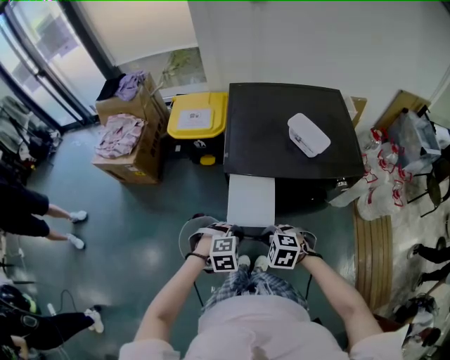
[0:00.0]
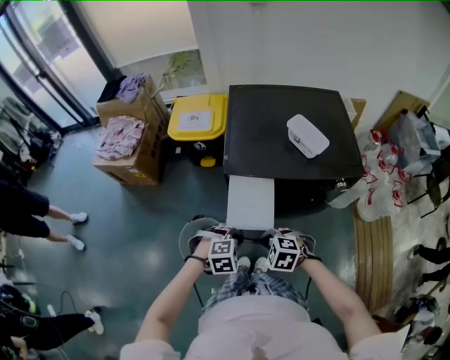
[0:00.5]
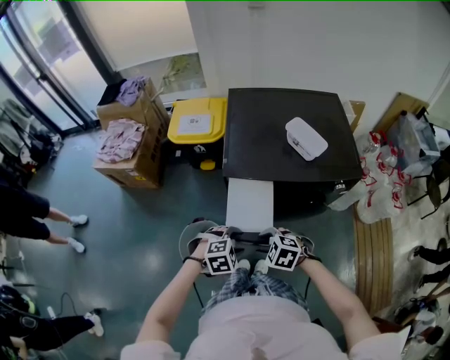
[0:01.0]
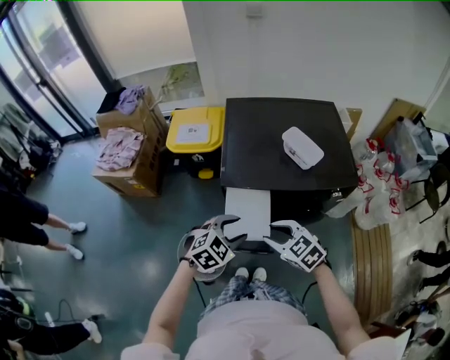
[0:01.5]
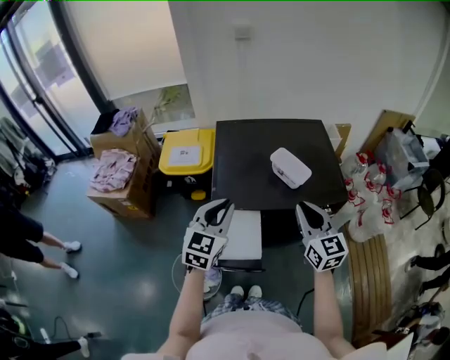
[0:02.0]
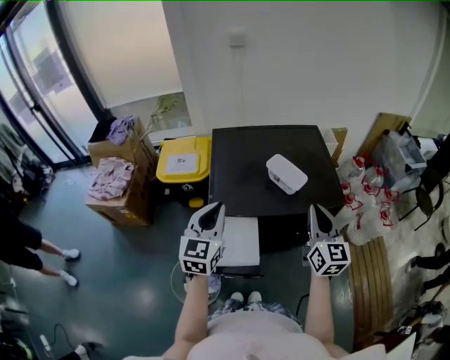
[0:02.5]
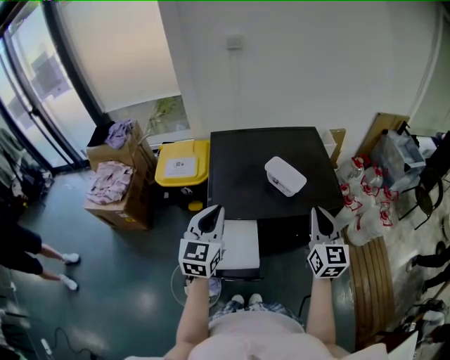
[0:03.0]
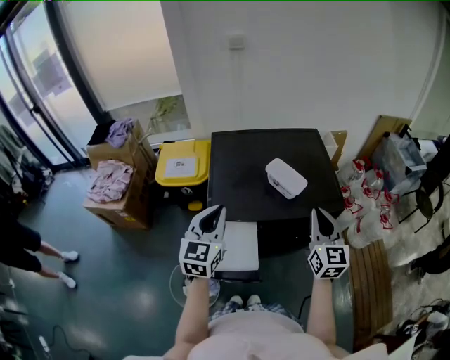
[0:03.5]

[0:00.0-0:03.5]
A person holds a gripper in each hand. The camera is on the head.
0:00.0 to 0:02.0: Both grippers move upward, about 25 cm. The left gripper points its fingers about 50 degrees further upward, and opens and closes again; the right gripper tips its fingers upward by approximately 60 degrees, and opens and closes again.
0:02.0 to 0:03.5: The right gripper goes roughly 5 cm to the right.

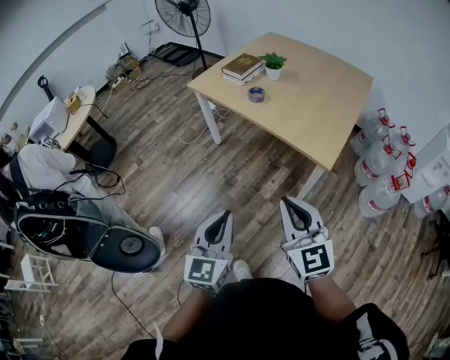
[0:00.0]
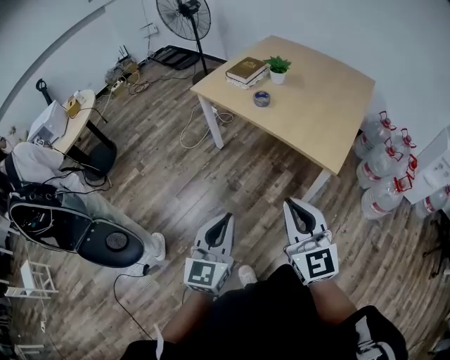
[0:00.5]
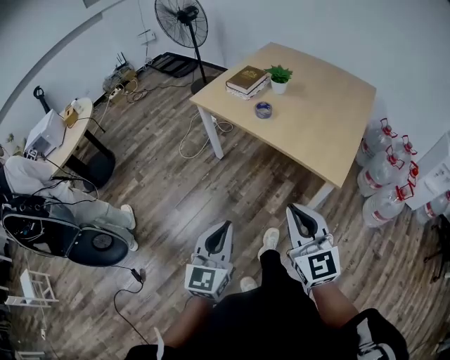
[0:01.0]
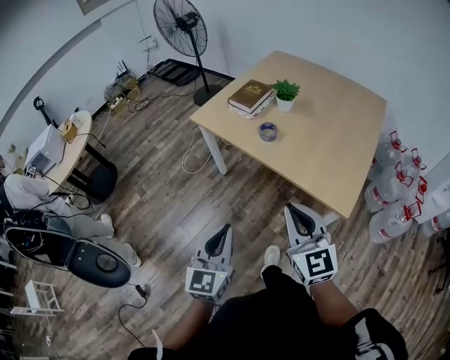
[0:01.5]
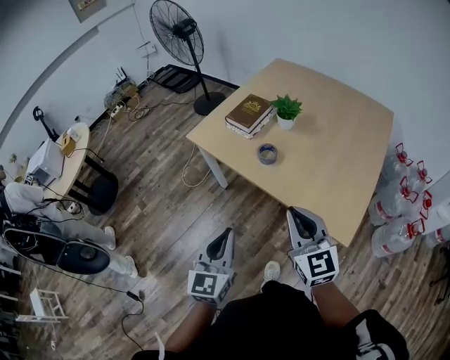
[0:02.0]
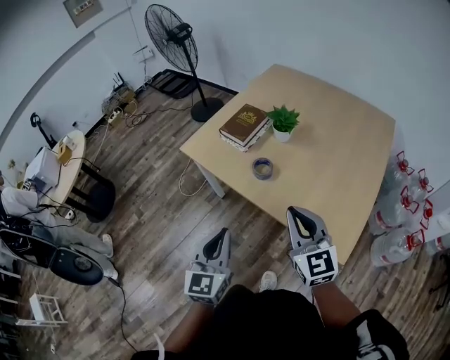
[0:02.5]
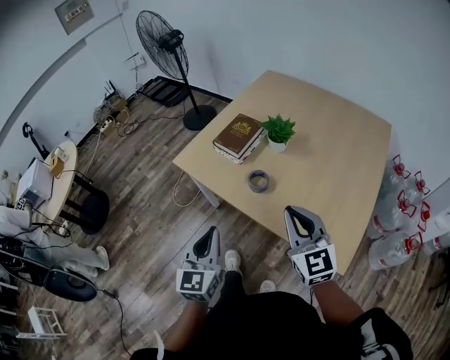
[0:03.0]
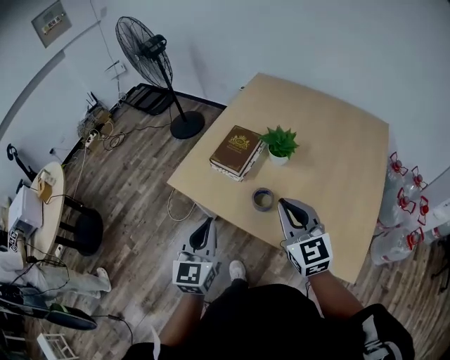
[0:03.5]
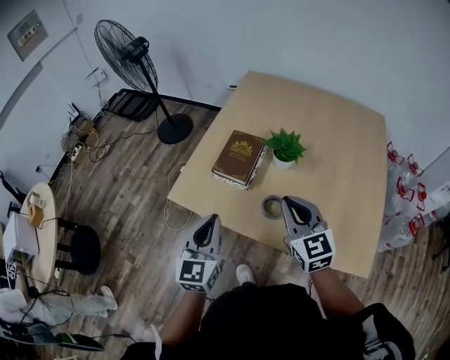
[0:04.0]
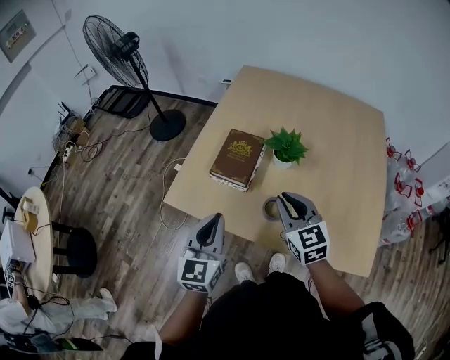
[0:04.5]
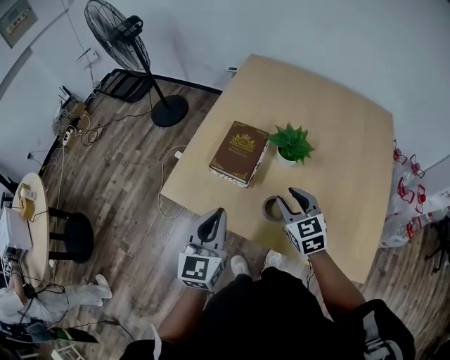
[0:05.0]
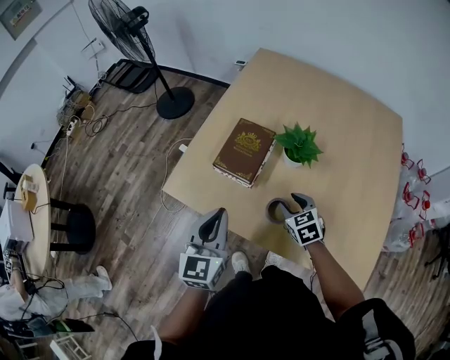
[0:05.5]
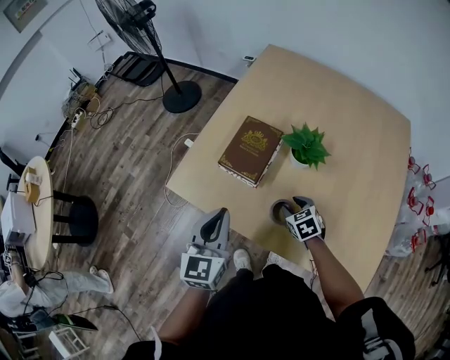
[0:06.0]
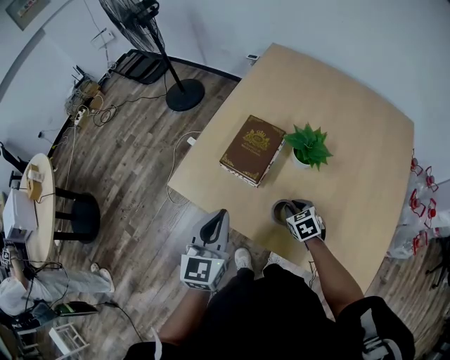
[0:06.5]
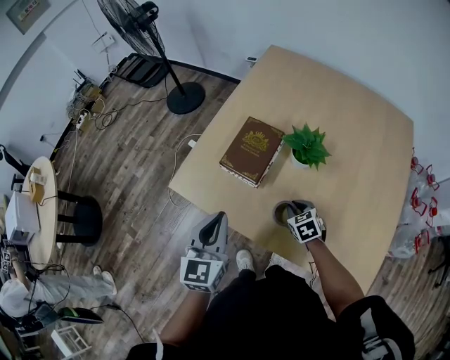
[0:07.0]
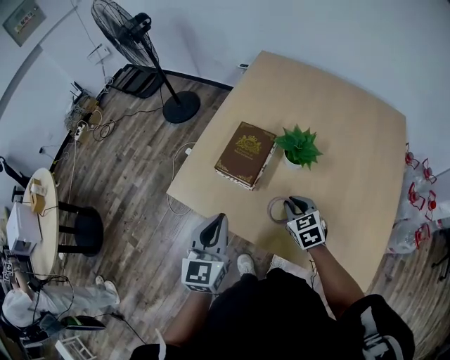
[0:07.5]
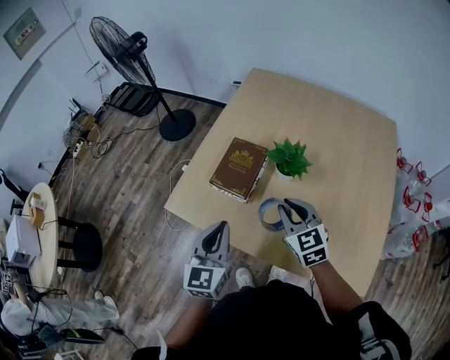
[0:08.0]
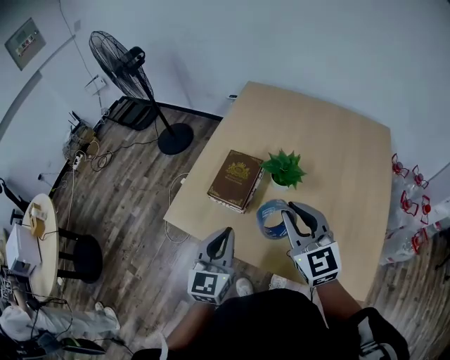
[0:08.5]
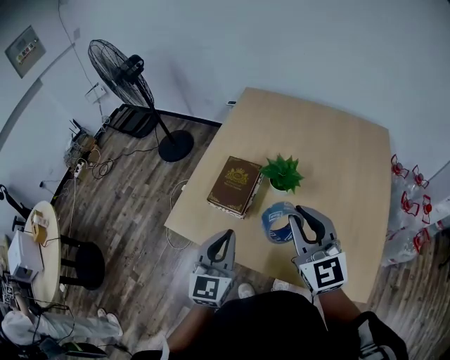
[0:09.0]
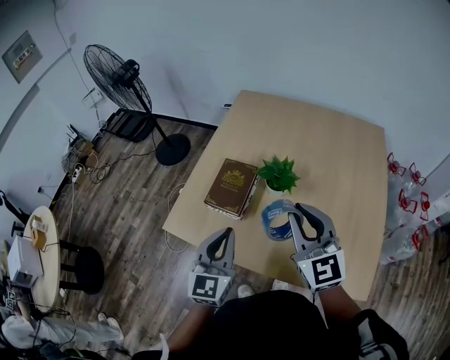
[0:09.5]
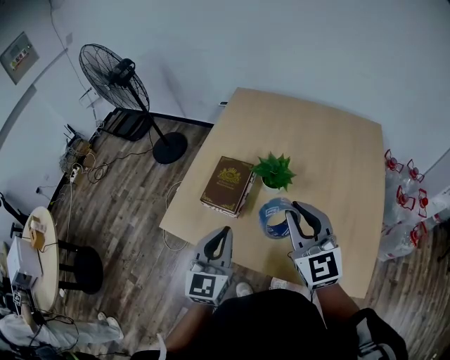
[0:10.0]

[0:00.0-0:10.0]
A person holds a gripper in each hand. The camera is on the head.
0:00.0 to 0:02.0: Both grippers travel together forward, some 30 cm.
0:02.0 to 0:04.0: The two grippers go about 35 cm forward.
0:04.0 to 0:06.0: The left gripper shifts about 5 cm forward, while the right gripper heads downward, covering some 30 cm, points its fingers about 40 degrees further downward, and opens its fingers.
0:06.0 to 0:08.0: The right gripper is displaced upward by roughly 20 cm, turns by some 30 degrees, and closes.
0:08.0 to 0:10.0: The left gripper changes place by roughly 5 cm. Meanwhile the right gripper goes approximately 15 cm upward, and changes its angle by roughly 20 degrees.

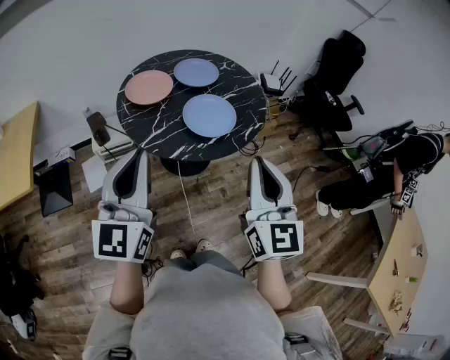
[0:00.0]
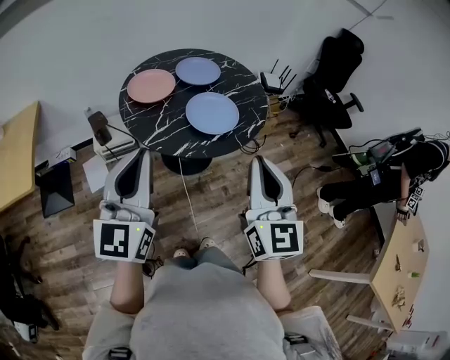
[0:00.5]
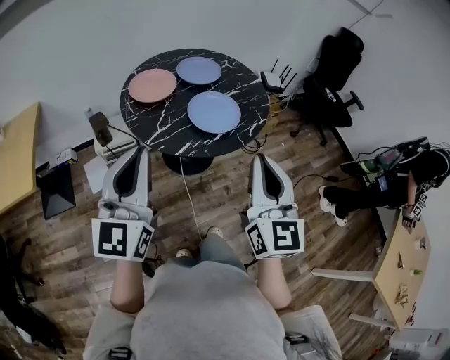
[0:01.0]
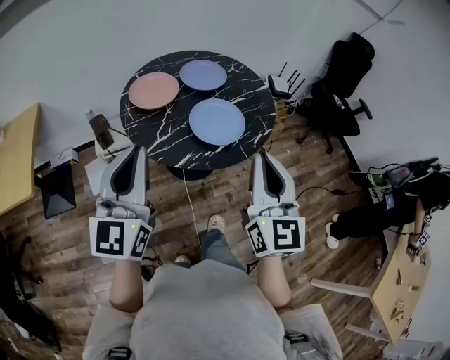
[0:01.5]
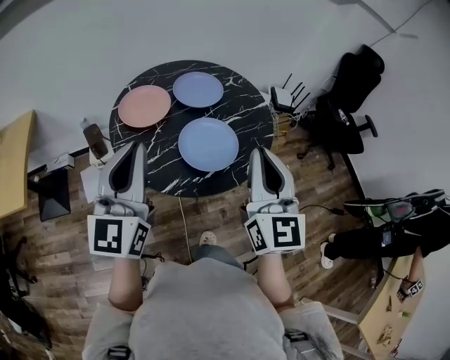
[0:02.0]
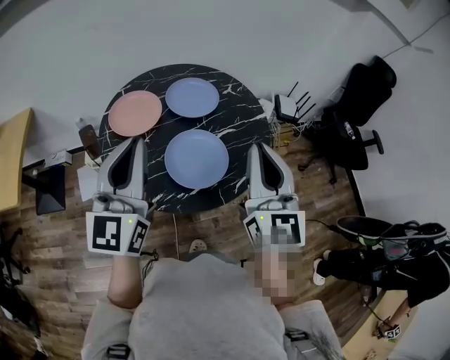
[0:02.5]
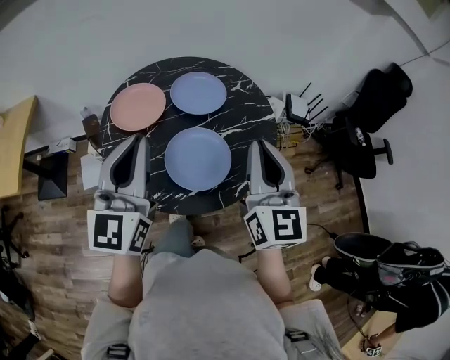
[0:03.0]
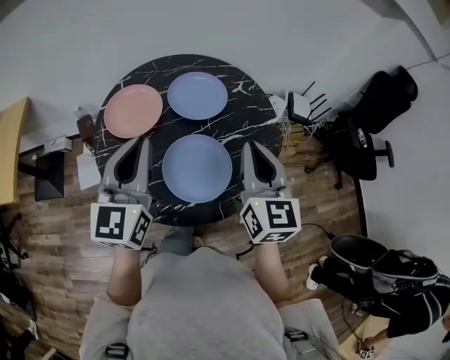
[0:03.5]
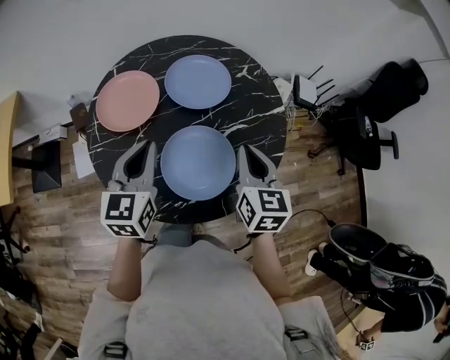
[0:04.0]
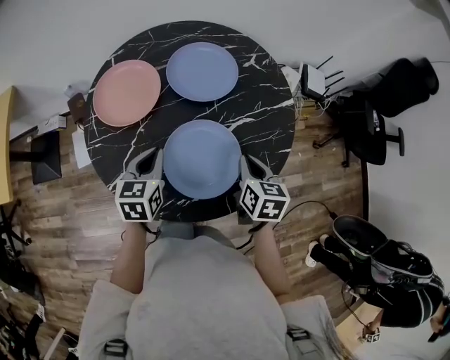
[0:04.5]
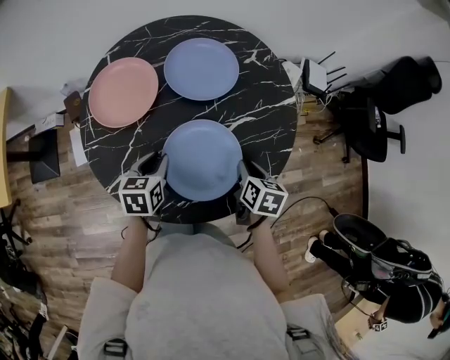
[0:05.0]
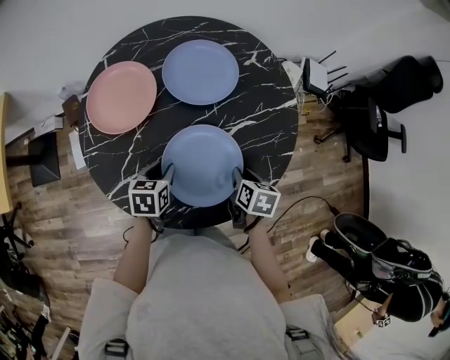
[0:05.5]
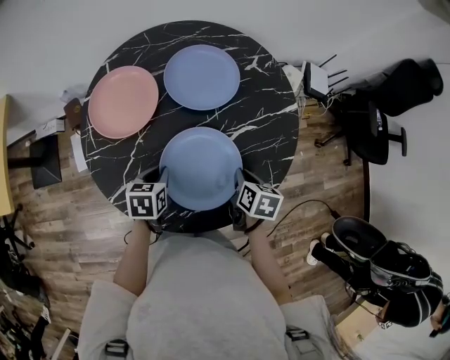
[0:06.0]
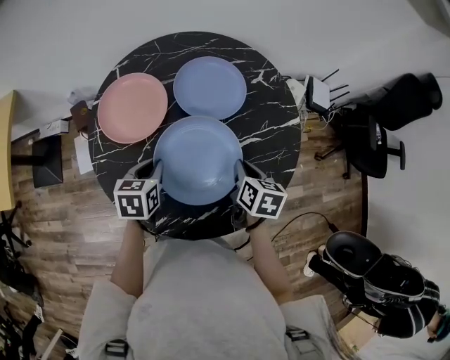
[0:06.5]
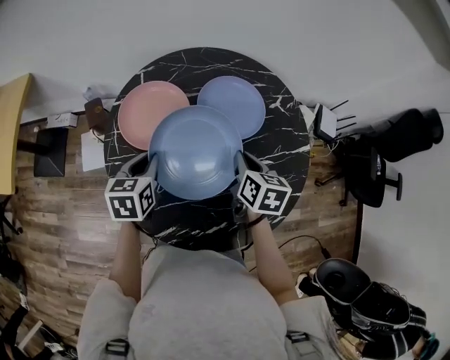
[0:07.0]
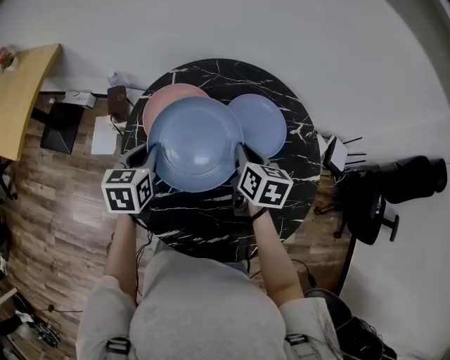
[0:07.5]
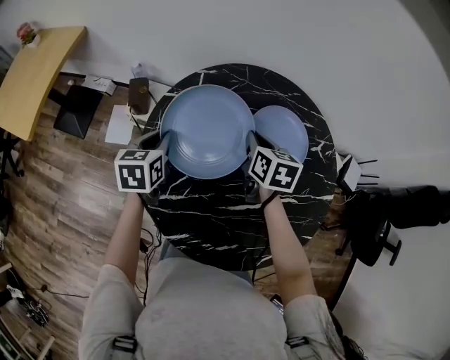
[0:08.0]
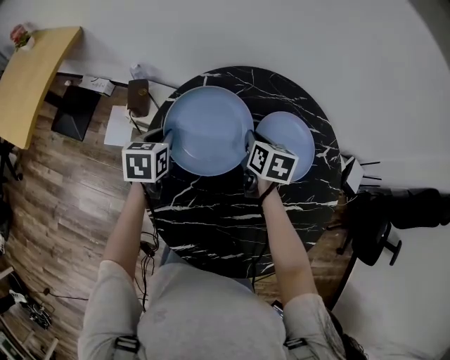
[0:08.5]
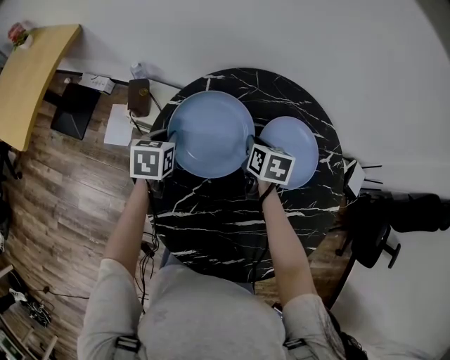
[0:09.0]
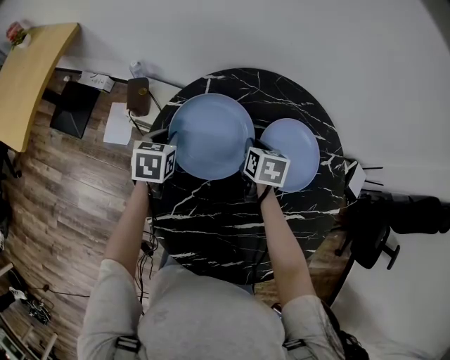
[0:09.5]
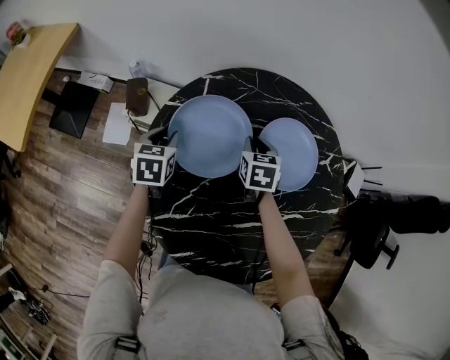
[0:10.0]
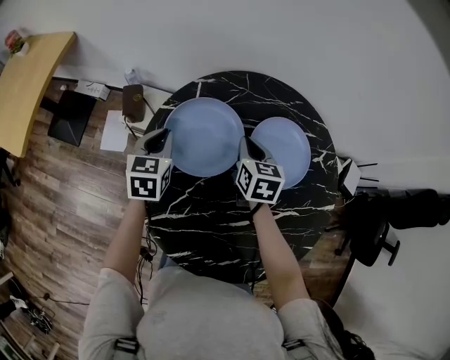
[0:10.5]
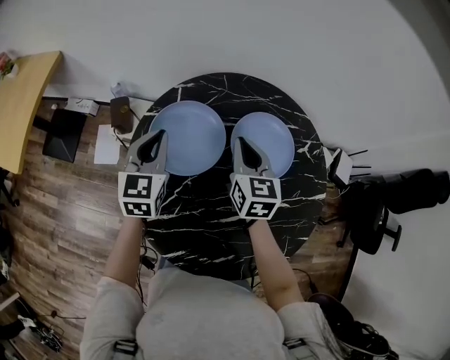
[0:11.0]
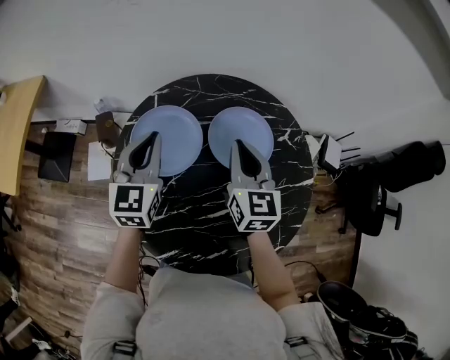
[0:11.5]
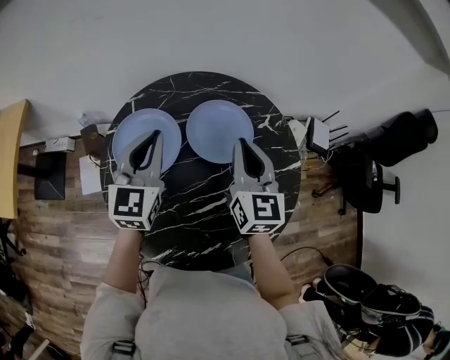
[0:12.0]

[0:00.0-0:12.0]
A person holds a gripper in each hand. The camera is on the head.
0:00.0 to 0:02.0: Both grippers move forward, some 15 cm.
0:02.0 to 0:04.0: The two grippers go roughly 30 cm forward and downward. The left gripper changes its angle by approximately 30 degrees. Meanwhile the right gripper tips its fingers downward by roughly 30 degrees.
0:04.0 to 0:06.0: Both grippers move downward, about 20 cm. The left gripper angles its fingers downward, by approximately 40 degrees; the right gripper points its fingers about 30 degrees further downward.
0:06.0 to 0:08.0: The left gripper moves roughly 25 cm, and changes its angle by some 30 degrees. Meanwhile the right gripper moves about 35 cm, and rotates roughly 40 degrees.
0:08.0 to 0:10.0: Both grippers travel together downward and forward, roughly 10 cm.
0:10.0 to 0:12.0: The right gripper is displaced upward, to the right and backward by some 30 cm, and tips its fingers upward by about 40 degrees. Meanwhile the left gripper shifts some 30 cm upward and to the right, tilts its fingers about 40 degrees upward, and closes up.

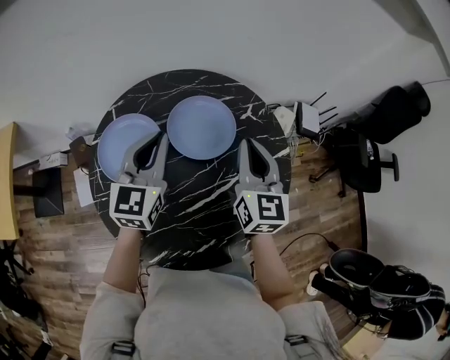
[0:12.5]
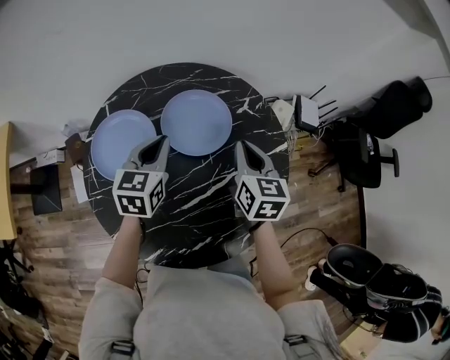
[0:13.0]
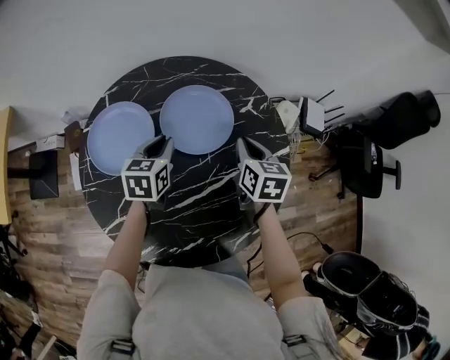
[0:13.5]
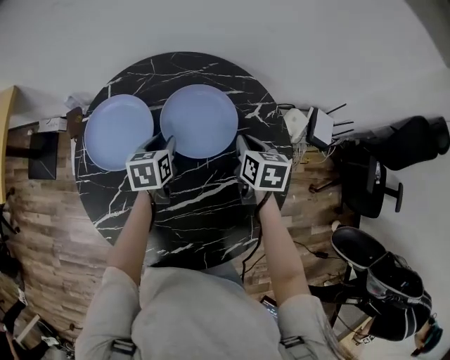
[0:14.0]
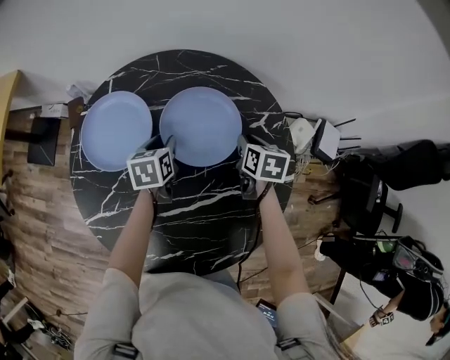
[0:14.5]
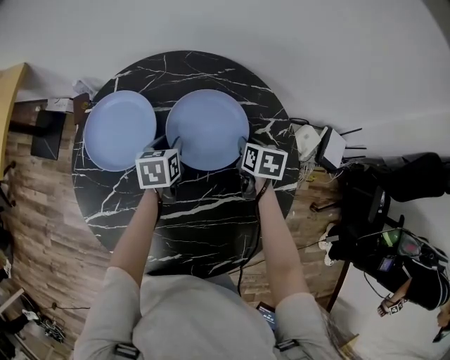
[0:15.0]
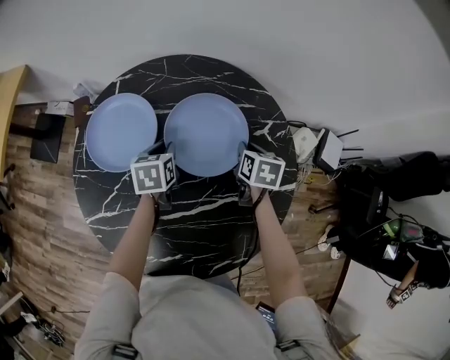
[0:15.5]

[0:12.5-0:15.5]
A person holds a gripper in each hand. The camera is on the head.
0:12.5 to 0:14.0: The right gripper goes roughly 20 cm downward and forward, and angles its fingers downward, by approximately 40 degrees. Meanwhile the left gripper goes about 20 cm downward, tips its fingers downward by some 40 degrees, and opens its fingers.
0:14.0 to 0:15.5: The right gripper travels downward by about 5 cm.
